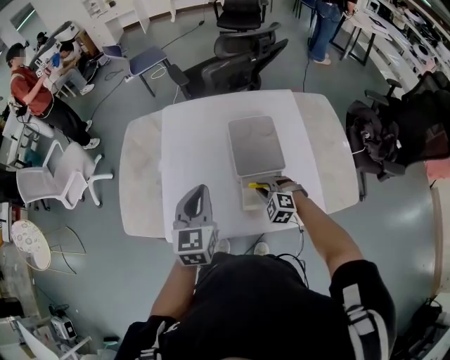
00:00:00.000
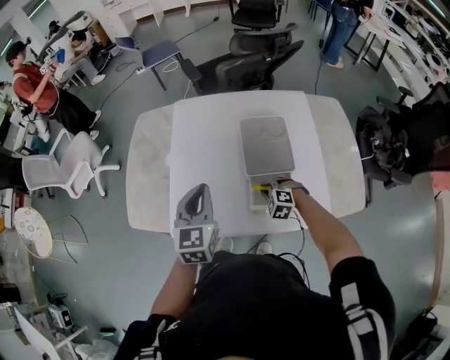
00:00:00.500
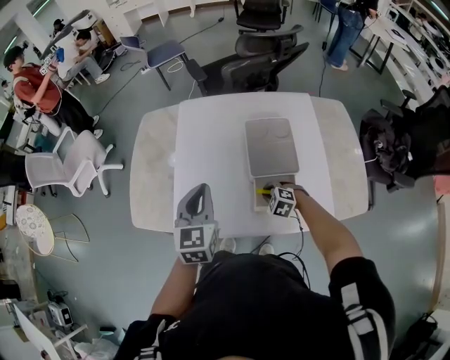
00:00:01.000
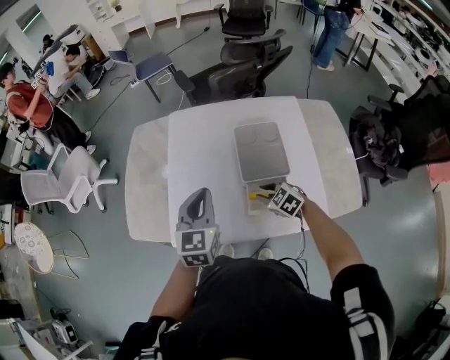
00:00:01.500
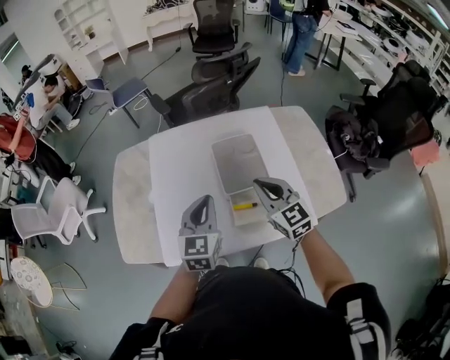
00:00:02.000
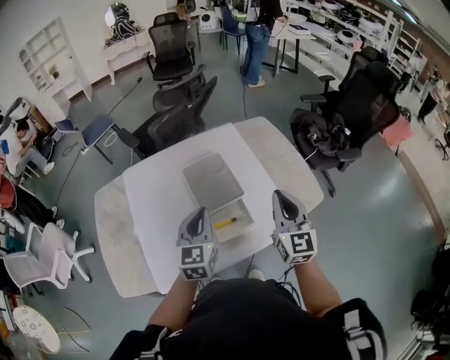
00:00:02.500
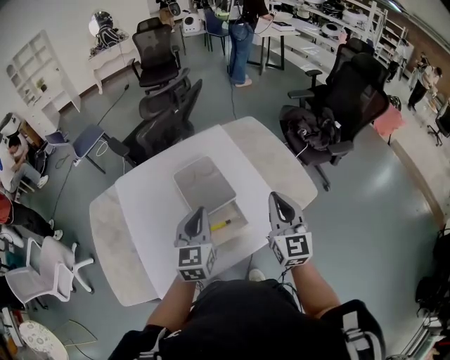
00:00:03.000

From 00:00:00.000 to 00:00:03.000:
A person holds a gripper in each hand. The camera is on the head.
From 00:00:00.000 to 00:00:01.500: The right gripper rotates some 30 degrees.
From 00:00:01.500 to 00:00:03.000: The right gripper travels upward by some 25 cm, points its fingers about 50 degrees further upward, and closes, while the left gripper shifts by roughly 15 cm, and changes its angle by roughly 20 degrees.

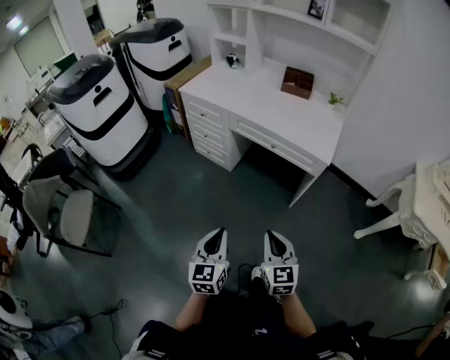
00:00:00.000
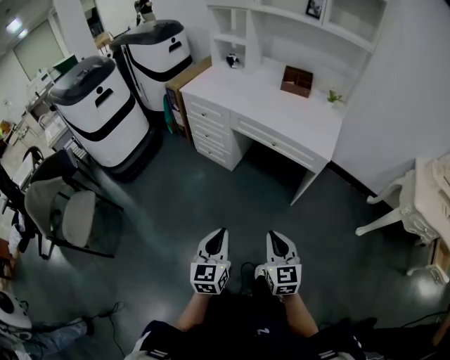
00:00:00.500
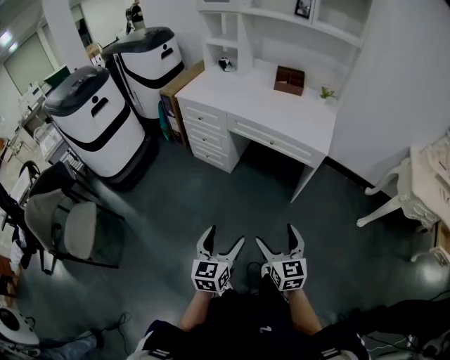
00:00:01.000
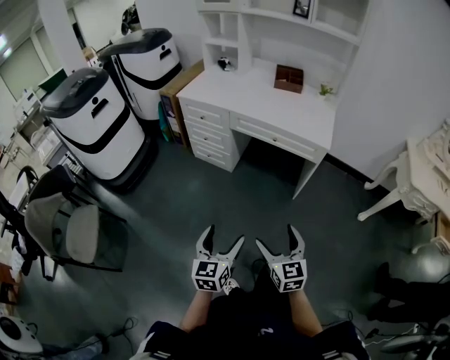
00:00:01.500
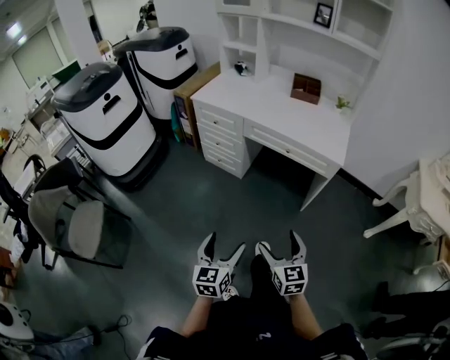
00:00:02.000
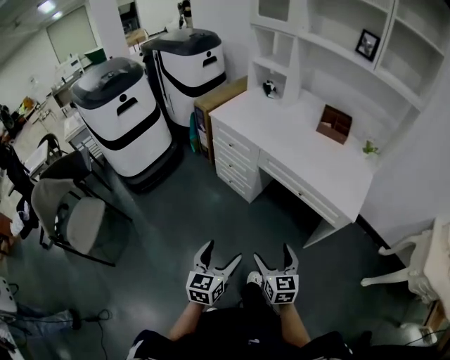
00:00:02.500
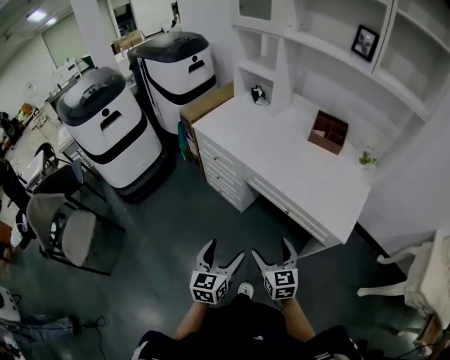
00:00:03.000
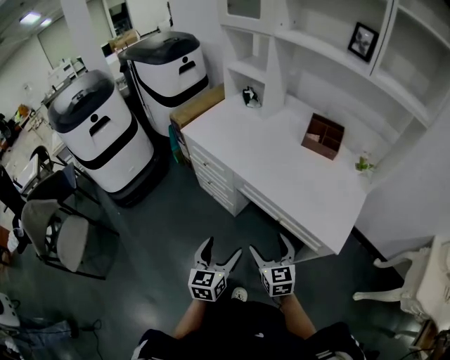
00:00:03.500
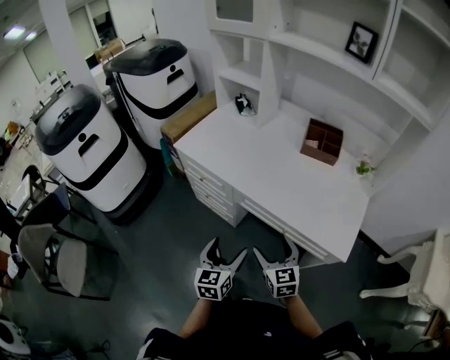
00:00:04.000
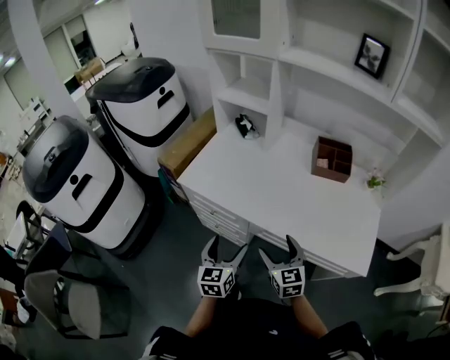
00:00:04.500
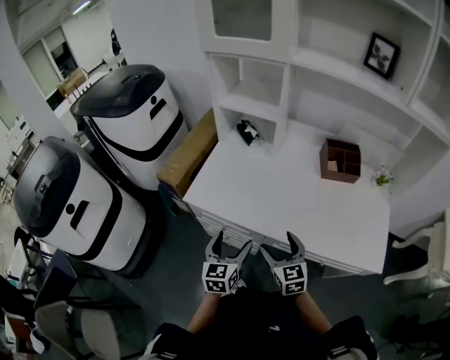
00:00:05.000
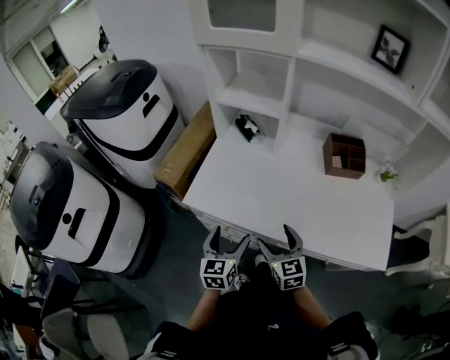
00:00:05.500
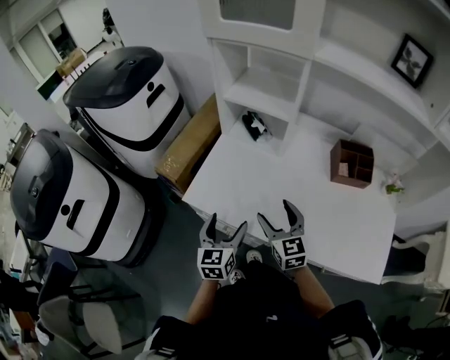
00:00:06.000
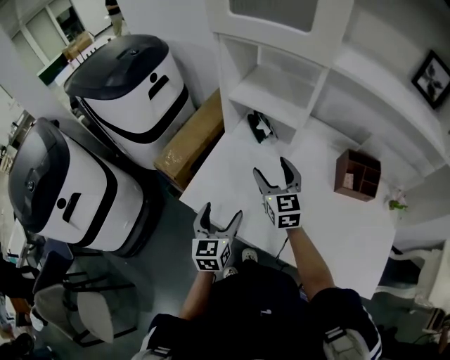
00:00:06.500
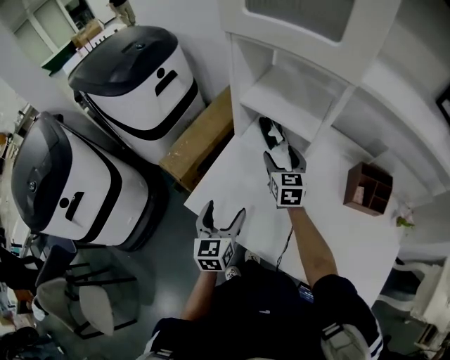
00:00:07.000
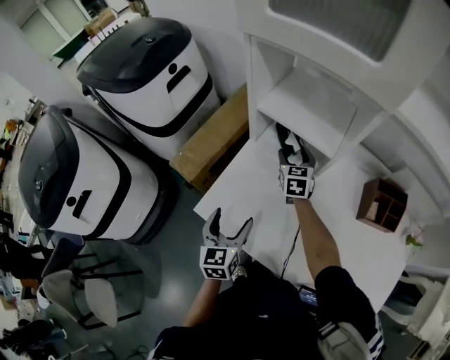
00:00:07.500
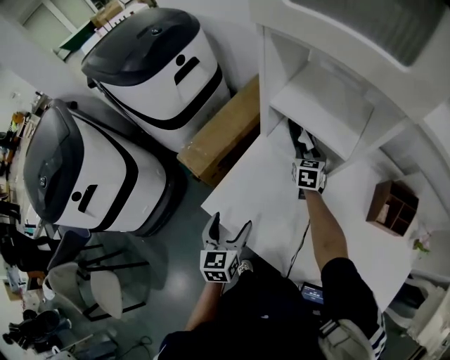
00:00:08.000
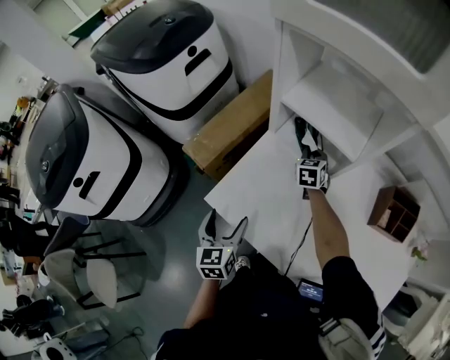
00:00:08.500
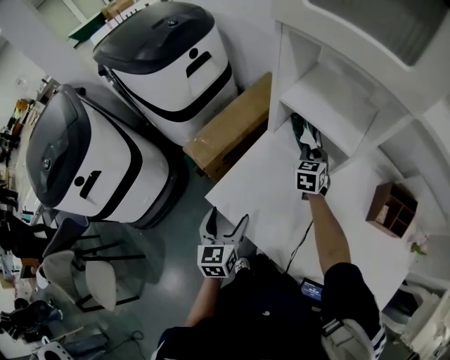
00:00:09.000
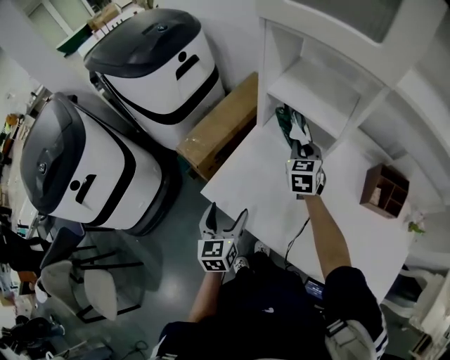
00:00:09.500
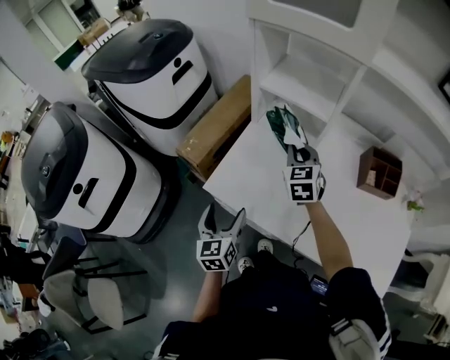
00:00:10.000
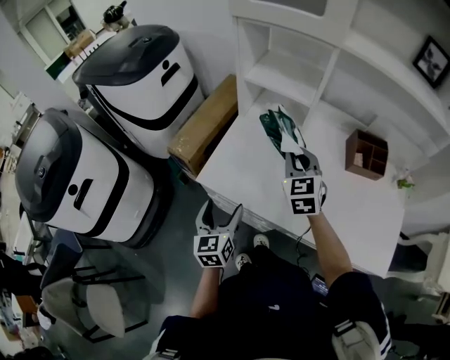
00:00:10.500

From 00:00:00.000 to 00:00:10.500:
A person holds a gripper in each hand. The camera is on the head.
From 00:00:00.000 to 00:00:02.000: The two grippers go roughly 10 cm to the left. The left gripper opens. The right gripper opens its fingers.
From 00:00:02.000 to 00:00:04.000: The two grippers travel together, forward, some 40 cm.
From 00:00:04.000 to 00:00:06.500: The two grippers travel together, forward and to the left, some 50 cm.
From 00:00:06.500 to 00:00:08.500: The right gripper shifts some 25 cm forward and downward, changes its angle by some 30 degrees, and closes. Meanwhile the left gripper goes some 10 cm to the left.
From 00:00:08.500 to 00:00:10.500: The left gripper shifts approximately 10 cm backward. The right gripper shifts some 35 cm backward and upward, and changes its angle by approximately 20 degrees.

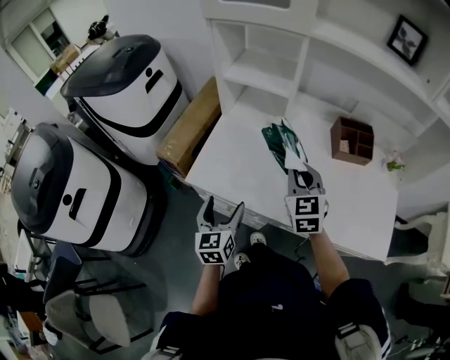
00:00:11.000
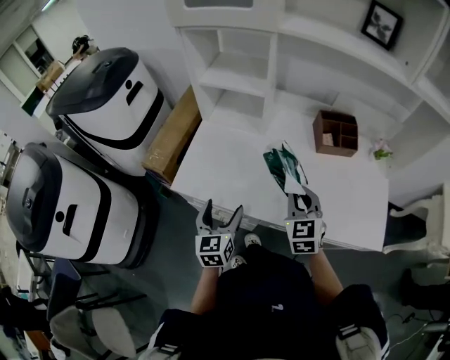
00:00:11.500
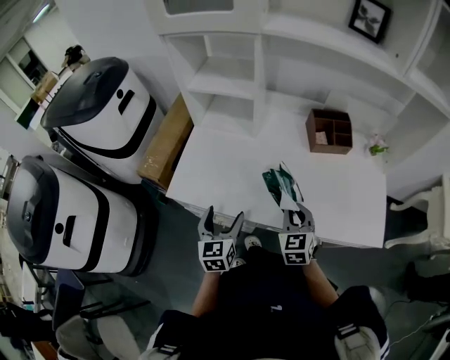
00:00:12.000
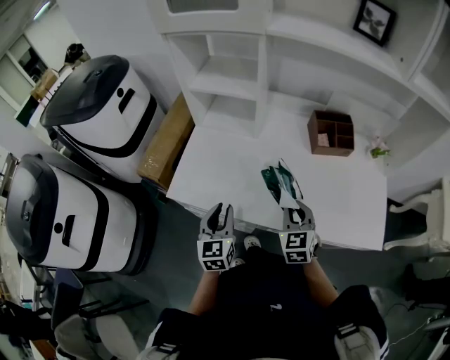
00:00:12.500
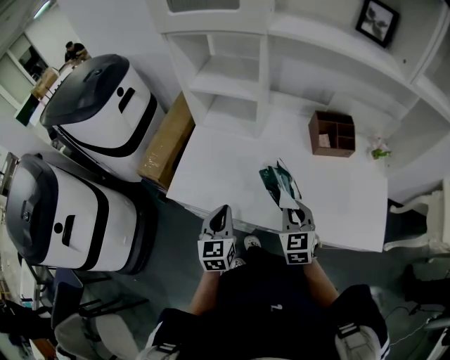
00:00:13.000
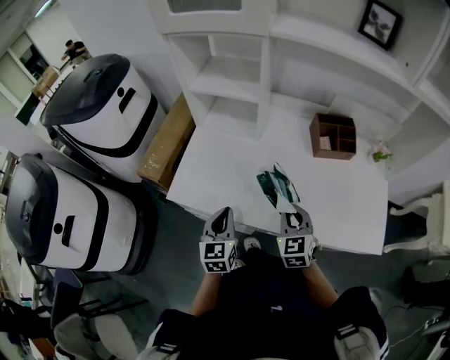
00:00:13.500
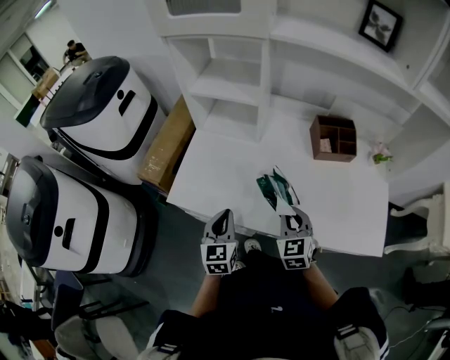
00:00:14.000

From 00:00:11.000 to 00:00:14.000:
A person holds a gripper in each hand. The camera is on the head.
From 00:00:11.000 to 00:00:12.500: The right gripper moves downward, to the right and backward, about 15 cm; the left gripper travels to the right by some 5 cm, and closes its fingers.
From 00:00:12.500 to 00:00:14.000: There are only small adjustments of the grippers.

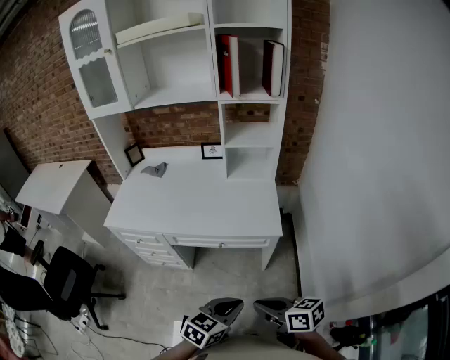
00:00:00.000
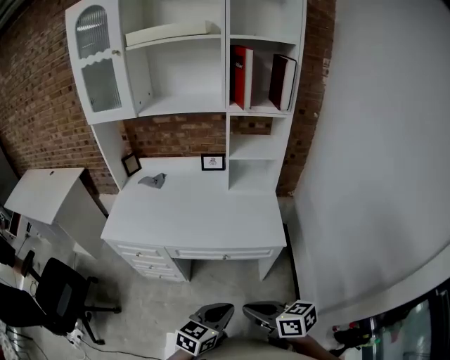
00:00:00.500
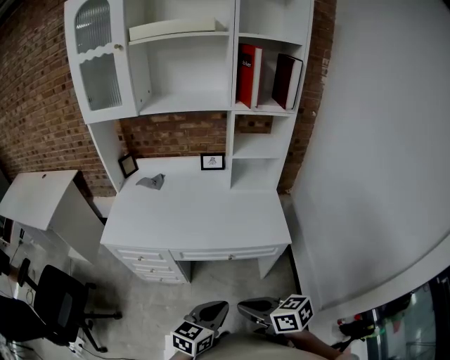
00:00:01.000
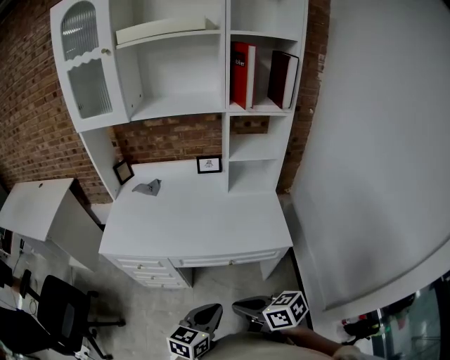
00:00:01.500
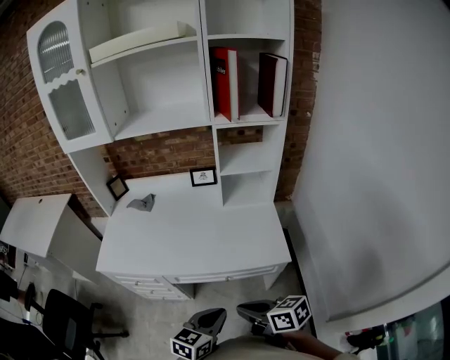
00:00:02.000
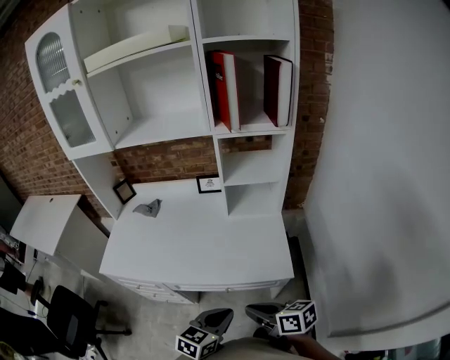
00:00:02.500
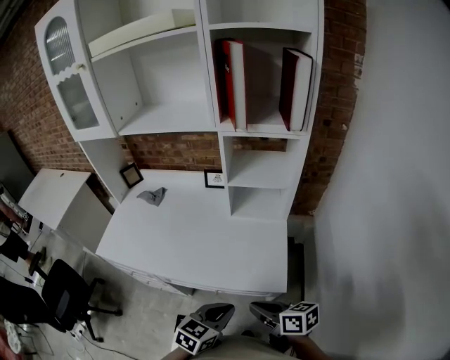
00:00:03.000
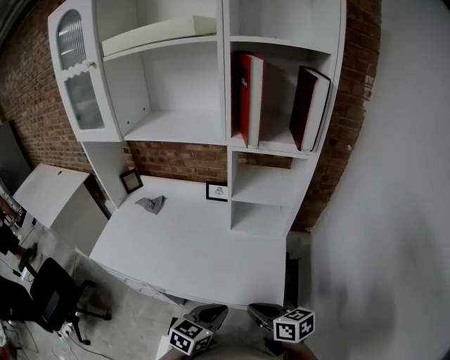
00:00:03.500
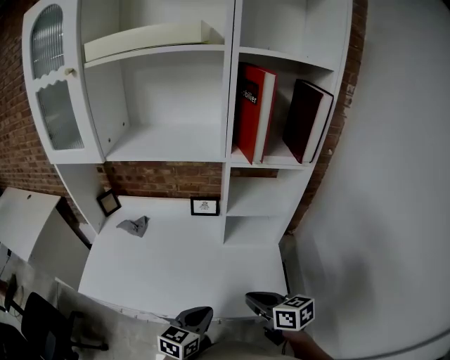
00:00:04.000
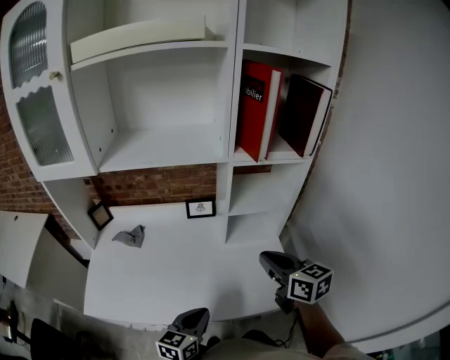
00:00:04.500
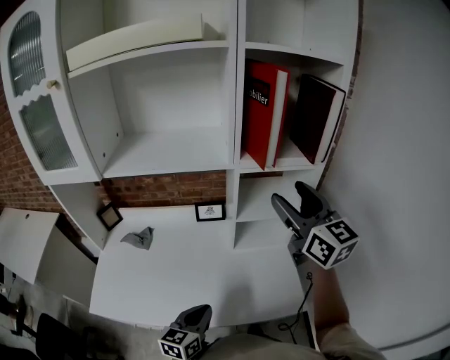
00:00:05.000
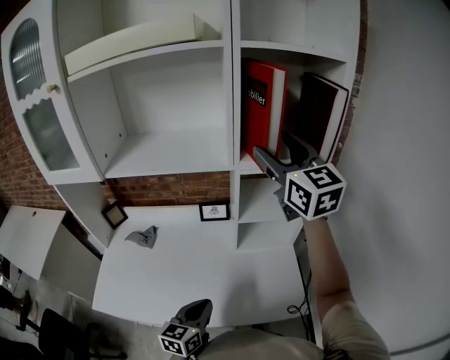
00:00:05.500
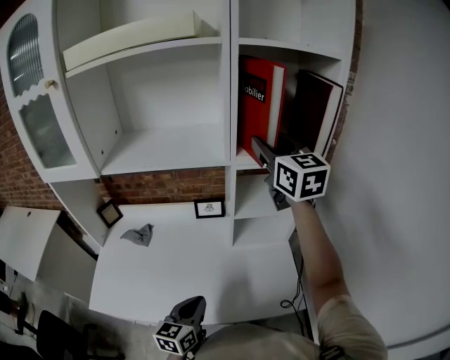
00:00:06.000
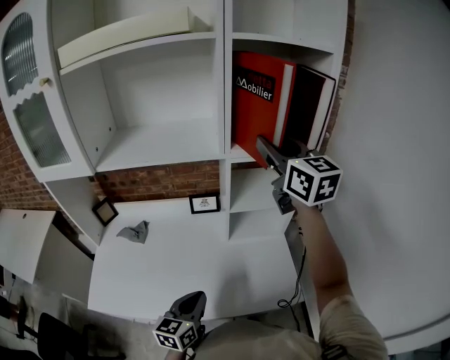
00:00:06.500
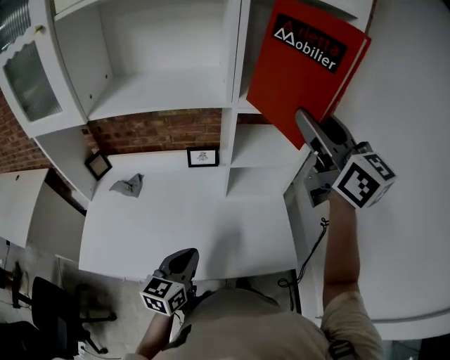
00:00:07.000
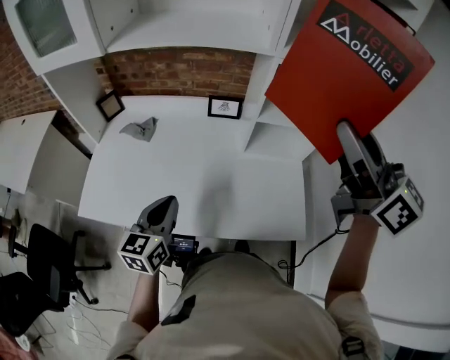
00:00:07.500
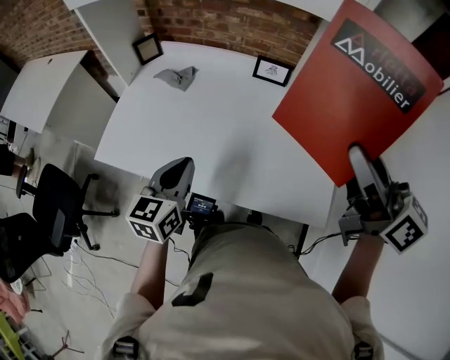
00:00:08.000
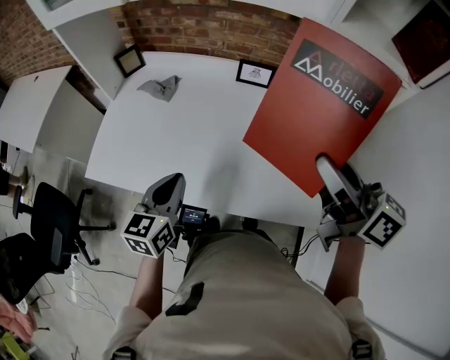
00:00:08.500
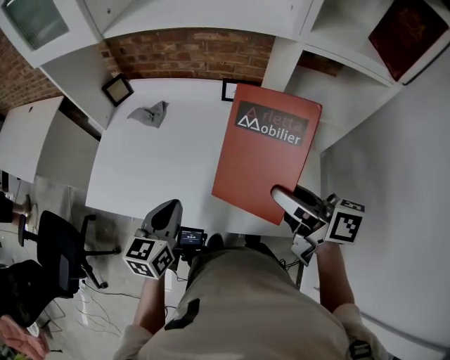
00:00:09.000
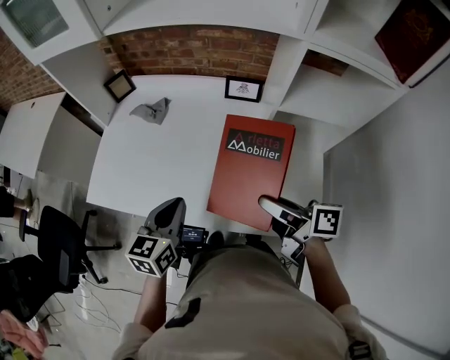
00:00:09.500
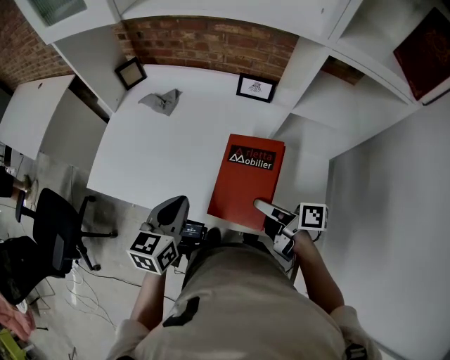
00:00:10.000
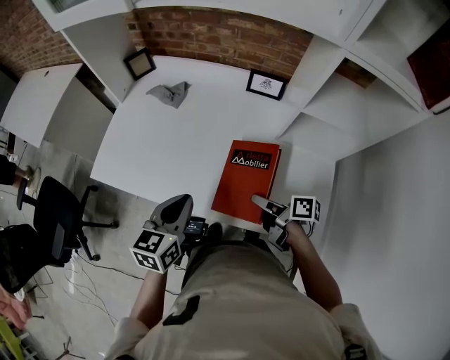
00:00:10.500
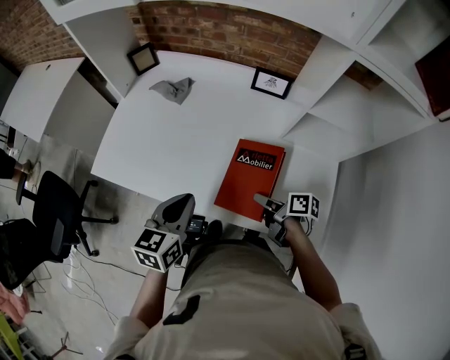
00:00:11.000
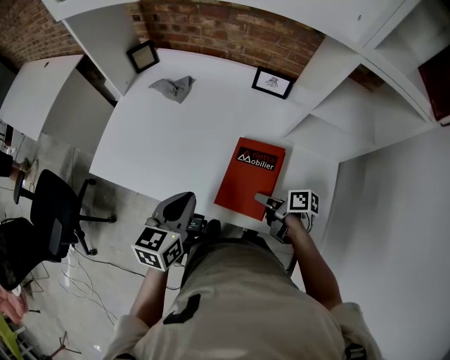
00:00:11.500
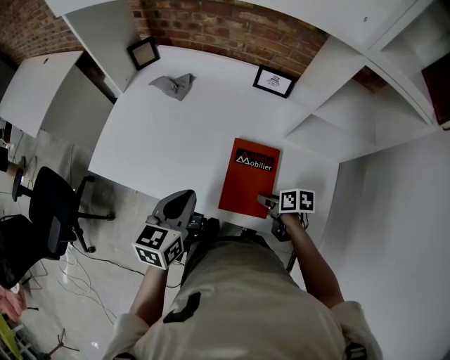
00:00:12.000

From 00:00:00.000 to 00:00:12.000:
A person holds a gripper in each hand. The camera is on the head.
From 00:00:00.000 to 00:00:02.000: The two grippers go roughly 20 cm forward and to the left.
From 00:00:02.000 to 00:00:04.000: The two grippers go roughly 20 cm forward.
From 00:00:04.000 to 00:00:06.000: The right gripper is displaced upward and forward by approximately 50 cm, turns by some 50 degrees, and opens its fingers, while the left gripper moves to the left and forward, about 10 cm.
From 00:00:06.000 to 00:00:08.000: The right gripper travels backward and downward by some 25 cm, and changes its angle by some 40 degrees. The left gripper moves to the left, approximately 15 cm.
From 00:00:08.000 to 00:00:10.000: The right gripper heads downward, covering roughly 30 cm, and rolls clockwise, seen from behind, by roughly 50 degrees.
From 00:00:10.000 to 00:00:12.000: The right gripper moves downward, some 15 cm, and angles its fingers downward, by some 40 degrees.
